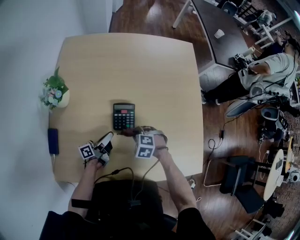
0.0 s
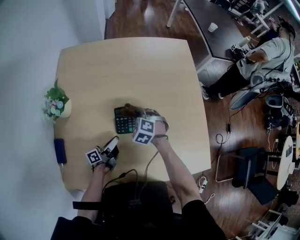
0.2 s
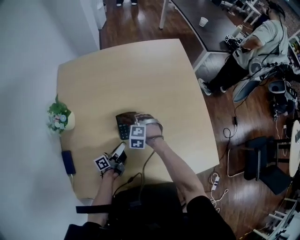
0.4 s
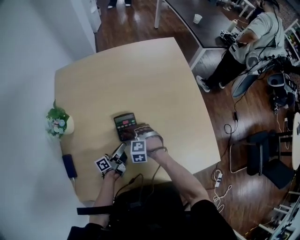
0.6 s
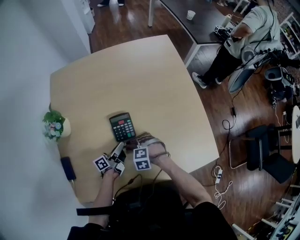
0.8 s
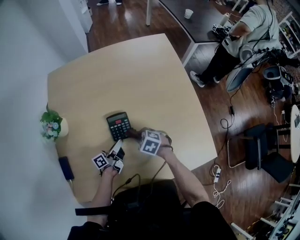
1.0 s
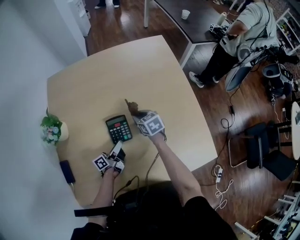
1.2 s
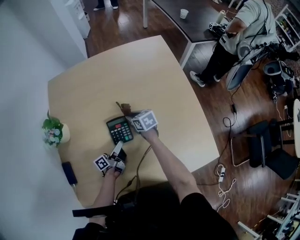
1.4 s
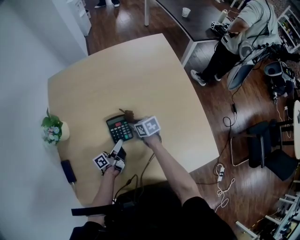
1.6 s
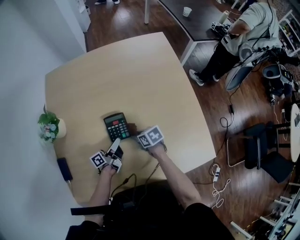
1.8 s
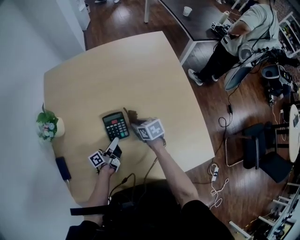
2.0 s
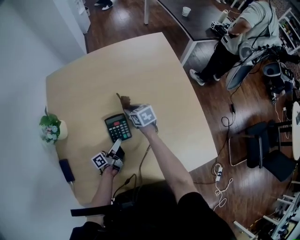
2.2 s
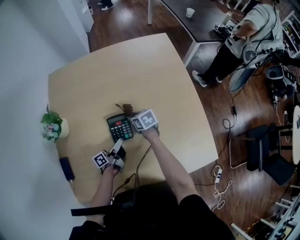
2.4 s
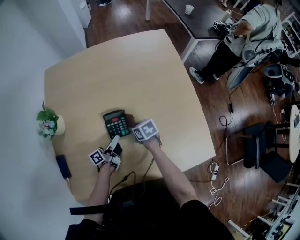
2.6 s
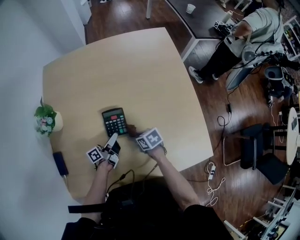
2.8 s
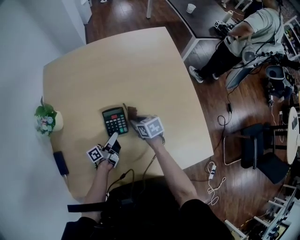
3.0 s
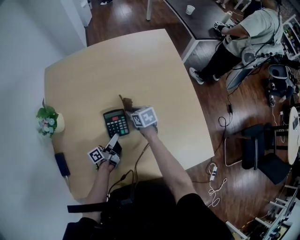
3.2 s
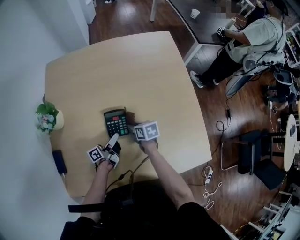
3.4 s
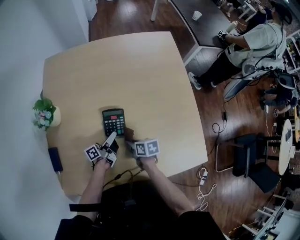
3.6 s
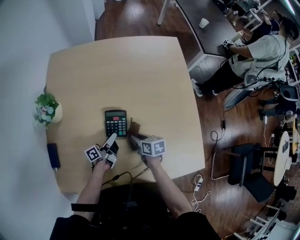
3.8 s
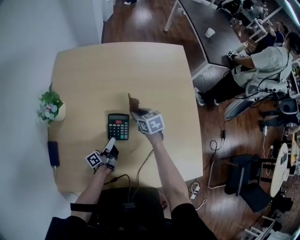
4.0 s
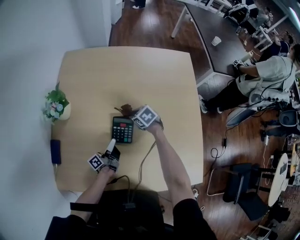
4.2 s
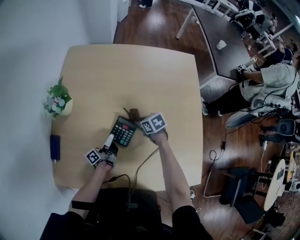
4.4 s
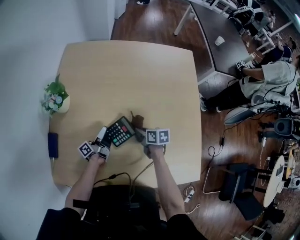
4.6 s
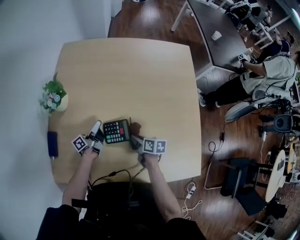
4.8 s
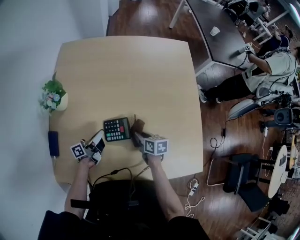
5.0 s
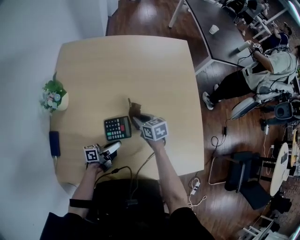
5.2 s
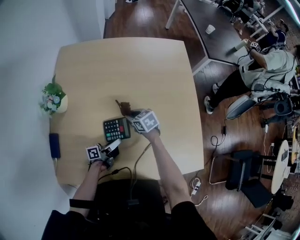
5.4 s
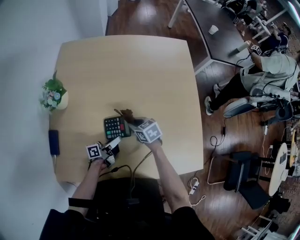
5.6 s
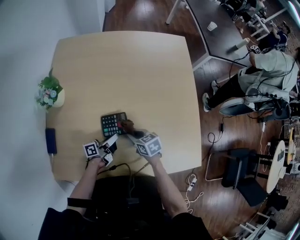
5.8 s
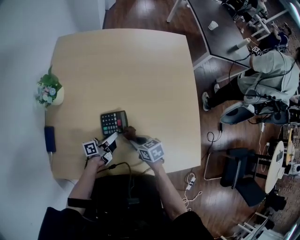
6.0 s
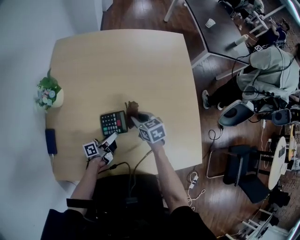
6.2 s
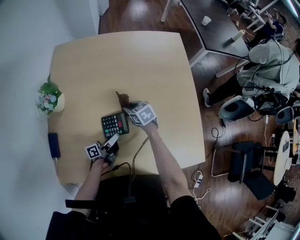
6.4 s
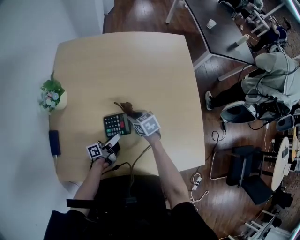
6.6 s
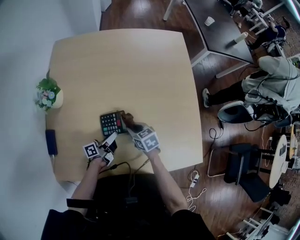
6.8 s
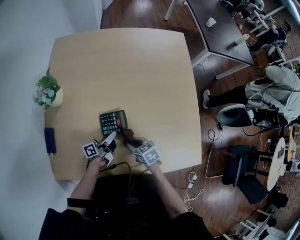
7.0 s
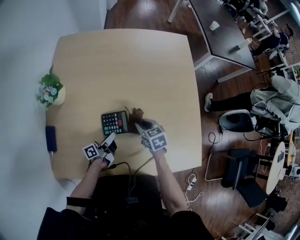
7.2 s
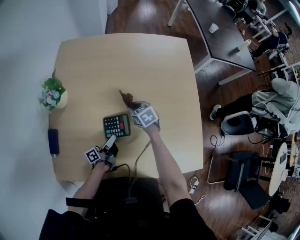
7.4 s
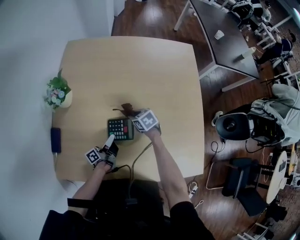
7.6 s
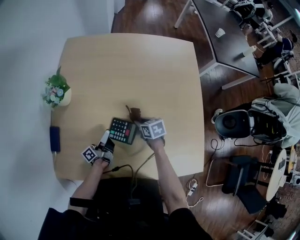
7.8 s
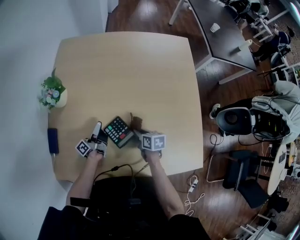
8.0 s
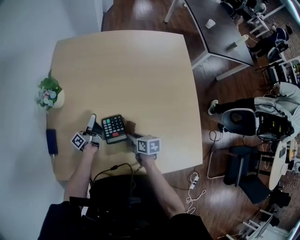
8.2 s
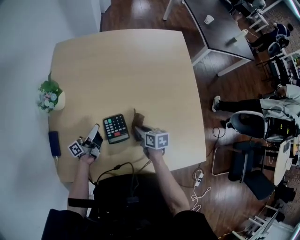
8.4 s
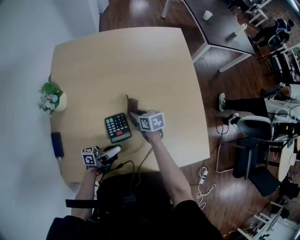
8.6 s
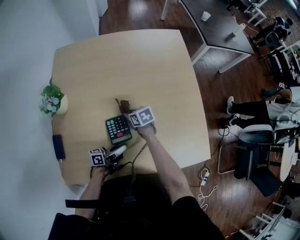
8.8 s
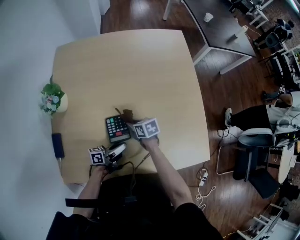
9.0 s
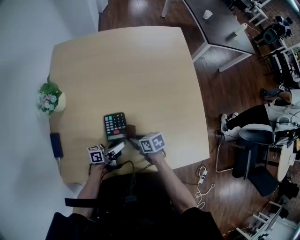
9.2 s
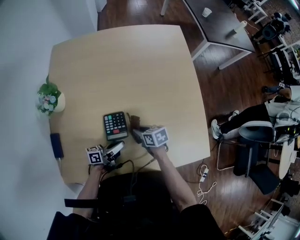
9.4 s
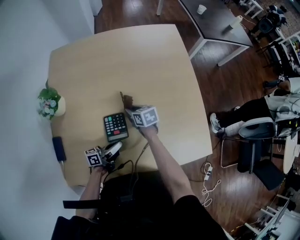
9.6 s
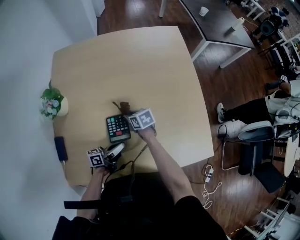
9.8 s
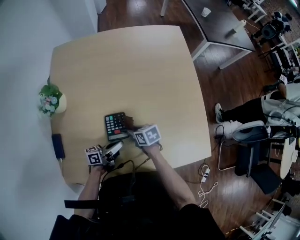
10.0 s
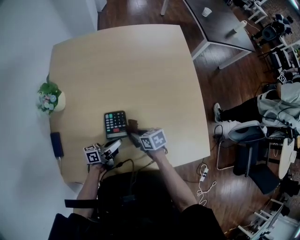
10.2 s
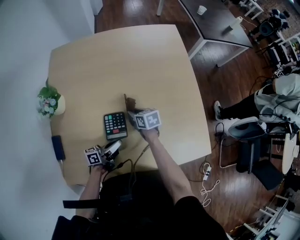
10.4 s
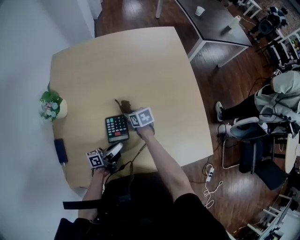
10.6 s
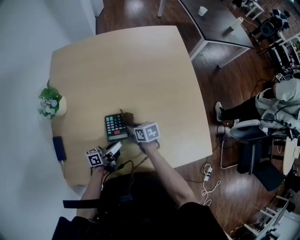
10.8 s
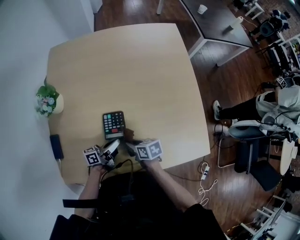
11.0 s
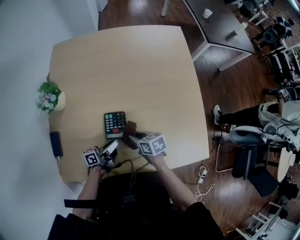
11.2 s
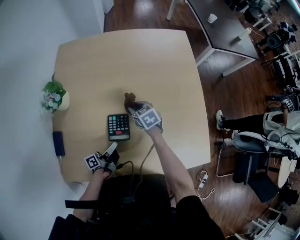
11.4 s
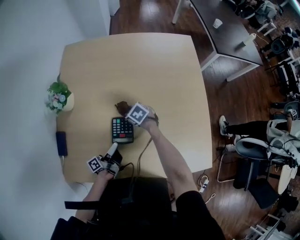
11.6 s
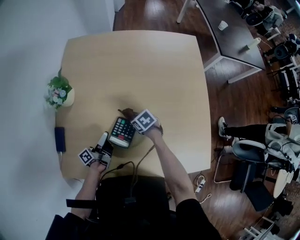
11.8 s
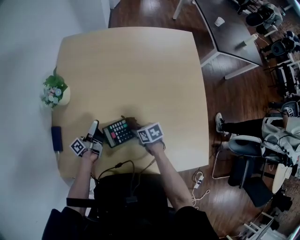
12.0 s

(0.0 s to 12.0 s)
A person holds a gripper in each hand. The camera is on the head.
0.0 s - 1.6 s: The left gripper shifts by approximately 5 cm. Meanwhile the right gripper swings up and down, approximately 10 cm each way, with 3 reversals, and twists roughly 70 degrees clockwise, seen from behind.
1.6 s - 3.0 s: The right gripper moves forward and backward over roughly 20 cm, changing direction 3 times.
3.0 s - 4.4 s: The right gripper swivels roughly 20 degrees. The left gripper moves about 5 cm, and changes its angle by approximately 30 degrees.
4.4 s - 6.0 s: The left gripper moves some 10 cm, and rotates roughly 30 degrees. Meanwhile the right gripper shifts by roughly 20 cm.
6.0 s - 7.6 s: The right gripper swings forward and backward, roughly 20 cm each way, with 2 reversals. Meanwhile the left gripper moves about 5 cm, and turns by some 20 degrees.
7.6 s - 9.0 s: The left gripper changes place by some 10 cm, and turns by about 40 degrees, while the right gripper rotates roughly 30 degrees.
10.4 s - 12.0 s: The right gripper turns by roughly 20 degrees. Meanwhile the left gripper shifts by some 15 cm, and turns by some 40 degrees.

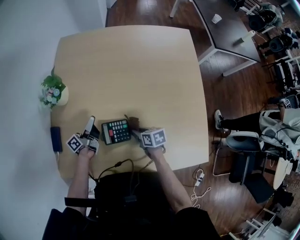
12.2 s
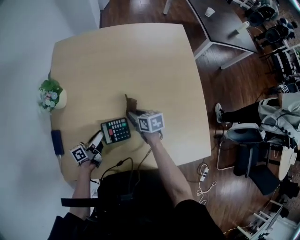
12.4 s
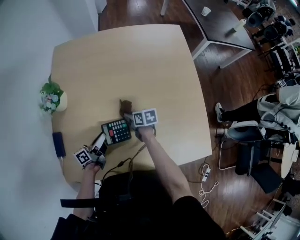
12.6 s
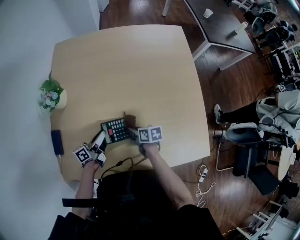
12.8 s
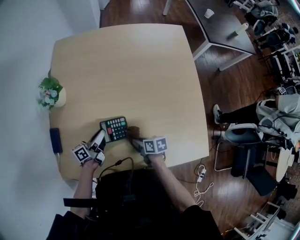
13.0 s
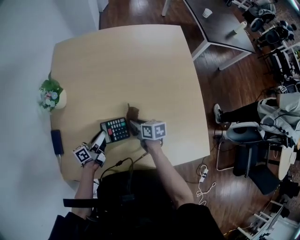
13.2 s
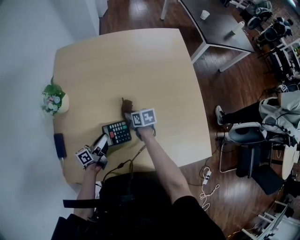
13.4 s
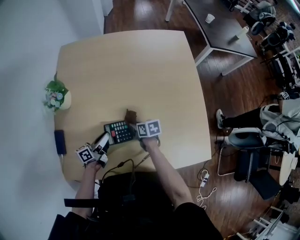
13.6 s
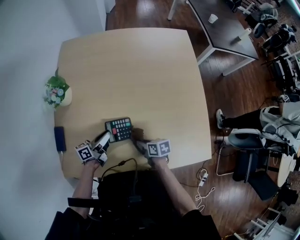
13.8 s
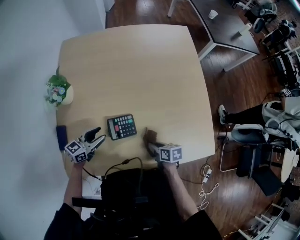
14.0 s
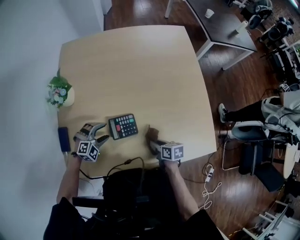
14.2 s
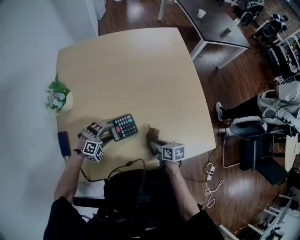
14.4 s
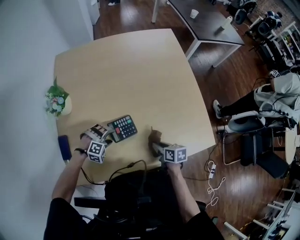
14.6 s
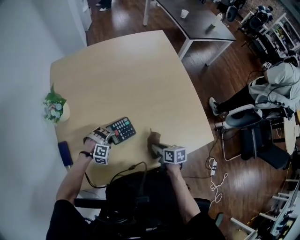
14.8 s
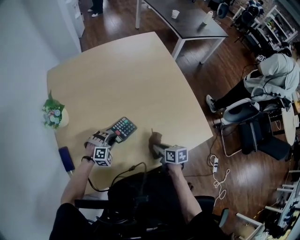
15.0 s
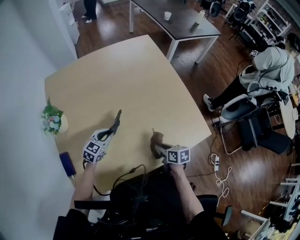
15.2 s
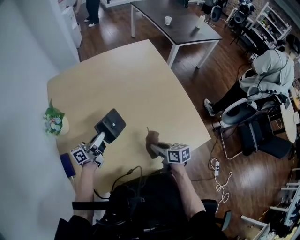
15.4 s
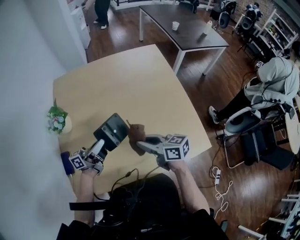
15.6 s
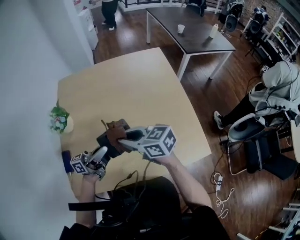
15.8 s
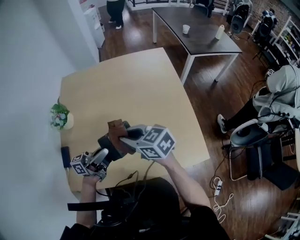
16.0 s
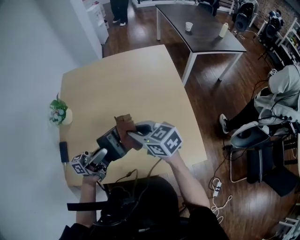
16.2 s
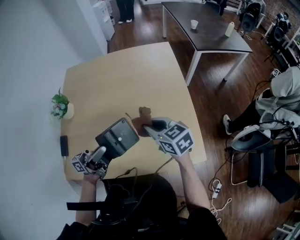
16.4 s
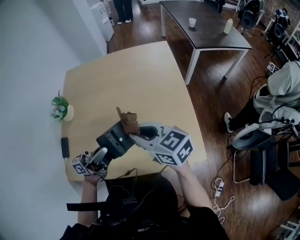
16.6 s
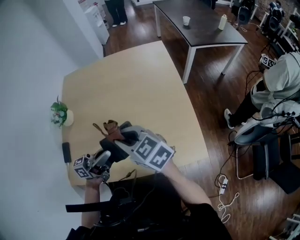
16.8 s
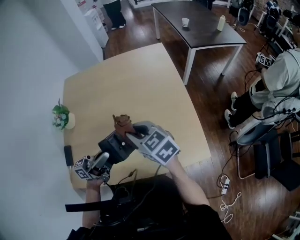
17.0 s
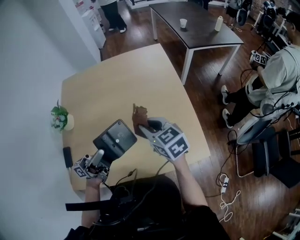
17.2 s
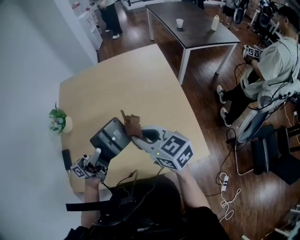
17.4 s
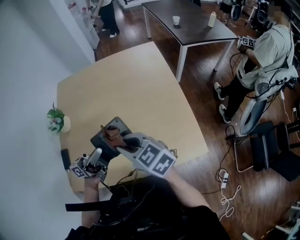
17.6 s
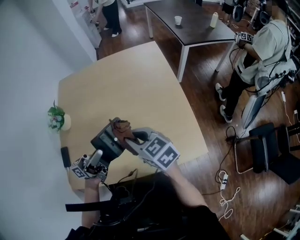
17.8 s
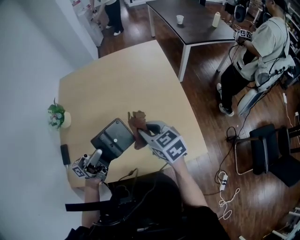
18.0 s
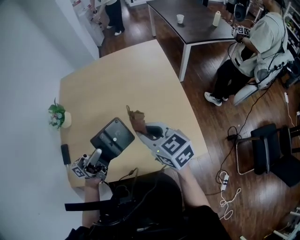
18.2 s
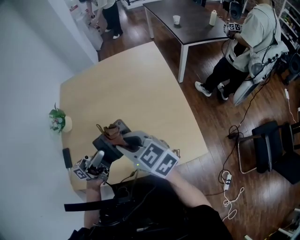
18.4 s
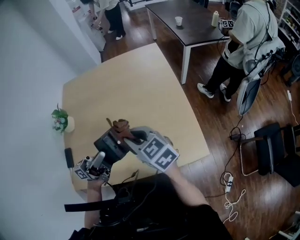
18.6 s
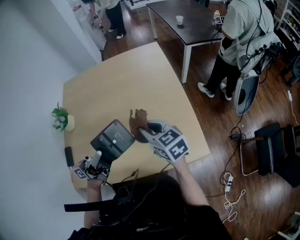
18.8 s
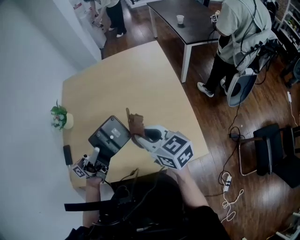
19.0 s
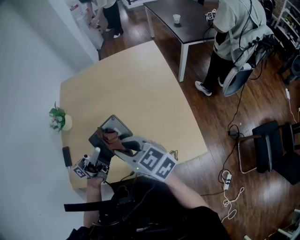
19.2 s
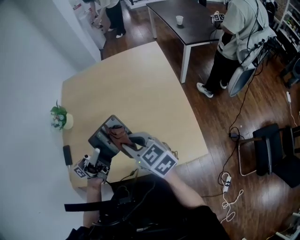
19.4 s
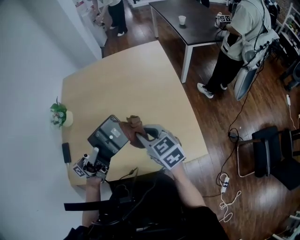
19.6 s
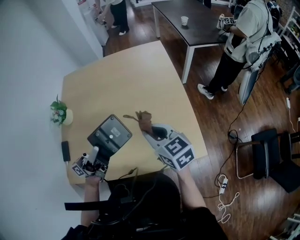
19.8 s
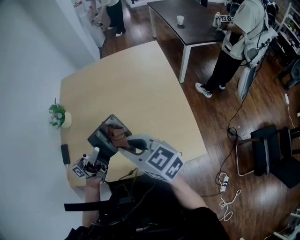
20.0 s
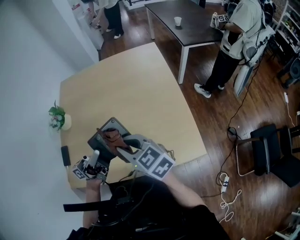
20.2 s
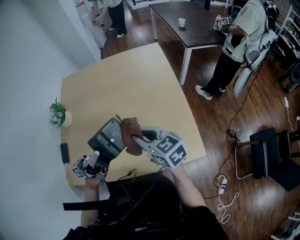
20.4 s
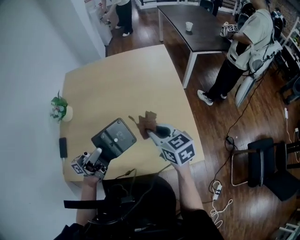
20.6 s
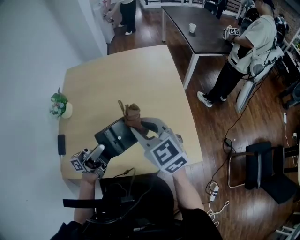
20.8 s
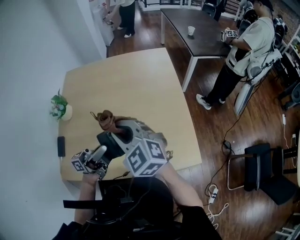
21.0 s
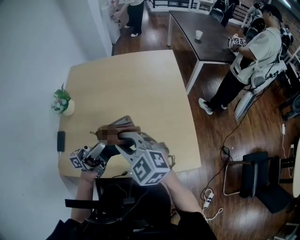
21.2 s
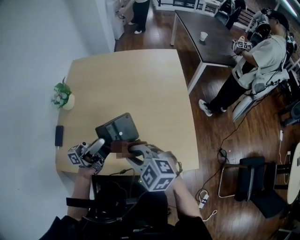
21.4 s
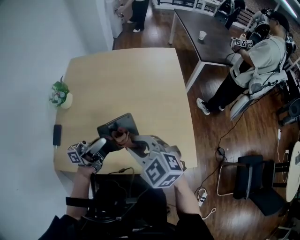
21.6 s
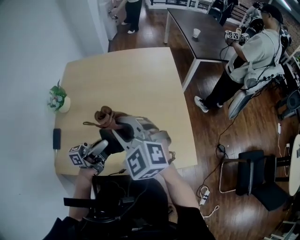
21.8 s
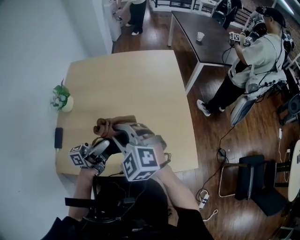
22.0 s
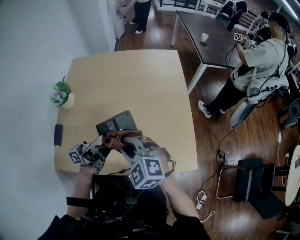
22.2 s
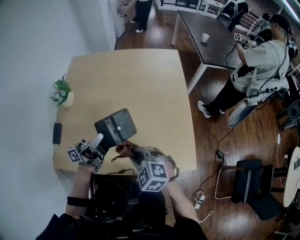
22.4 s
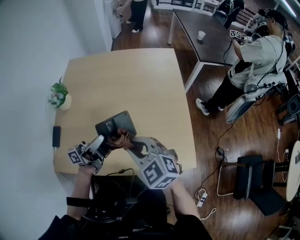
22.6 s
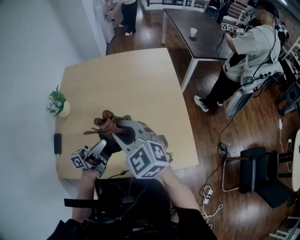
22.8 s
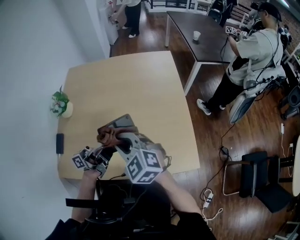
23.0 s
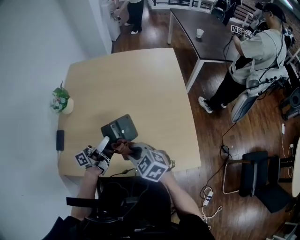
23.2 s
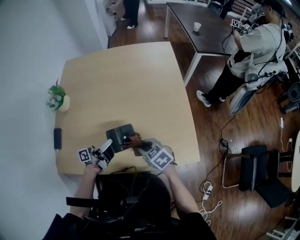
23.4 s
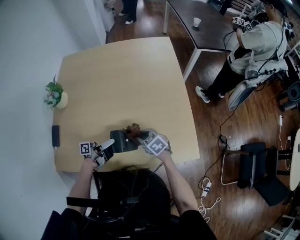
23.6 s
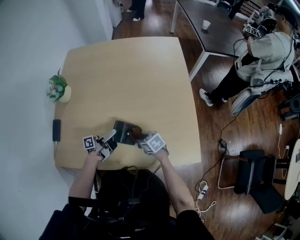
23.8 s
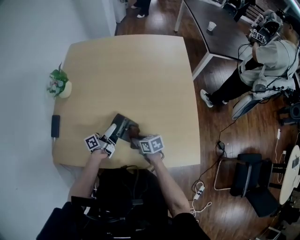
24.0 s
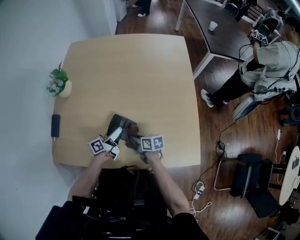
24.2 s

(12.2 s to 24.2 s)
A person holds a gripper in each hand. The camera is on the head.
12.2 s - 13.8 s: The right gripper goes forward and backward, roughly 15 cm each way, reversing 3 times. The left gripper heads backward and to the right, covering about 10 cm, and swivels roughly 30 degrees.
13.8 s - 15.2 s: The left gripper goes downward and returns, some 10 cm each way, rotates around the line of its fingers by some 60 degrees, clockwise from behind, and opens and closes again. The right gripper moves approximately 10 cm, and changes its angle by some 30 degrees.
15.2 s - 16.6 s: The left gripper moves upward, to the right and backward, some 25 cm, and tips its fingers upward by roughly 50 degrees. The right gripper swings up and down, approximately 30 cm each way, with 2 reversals, and swivels some 60 degrees.
16.6 s - 18.2 s: The right gripper goes left and right, approximately 10 cm each way, reversing 3 times.
18.2 s - 19.8 s: The right gripper travels backward and back again, some 5 cm each way.
19.8 s - 21.2 s: The right gripper goes left and right, approximately 15 cm each way, reversing 2 times, and swivels about 40 degrees.
21.2 s - 22.6 s: The right gripper goes up and down, approximately 15 cm each way, reversing 3 times.
22.6 s - 24.2 s: The two grippers go roughly 25 cm downward. The right gripper rolls clockwise, seen from behind, by roughly 70 degrees; the left gripper turns by approximately 30 degrees, and opens up.
